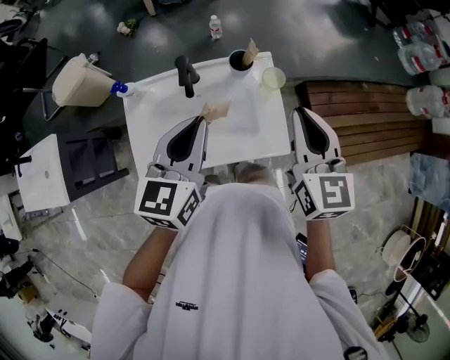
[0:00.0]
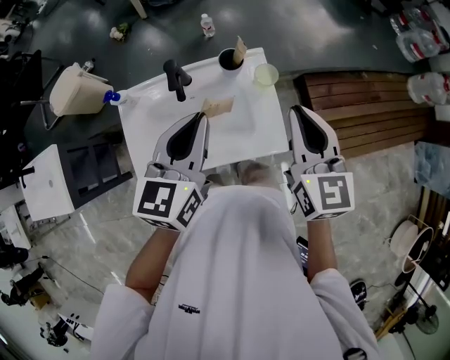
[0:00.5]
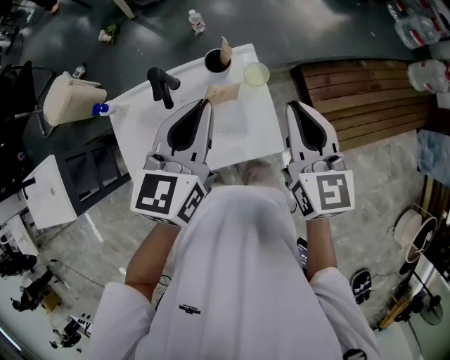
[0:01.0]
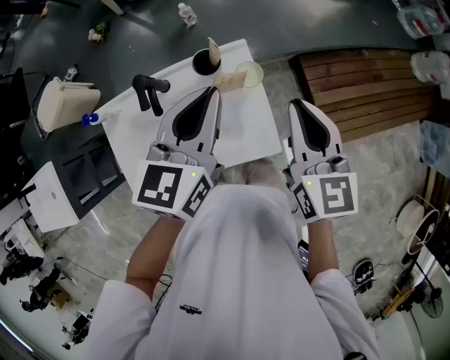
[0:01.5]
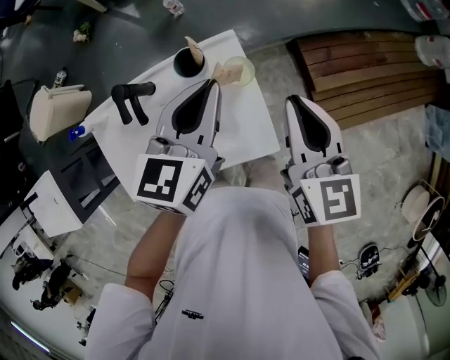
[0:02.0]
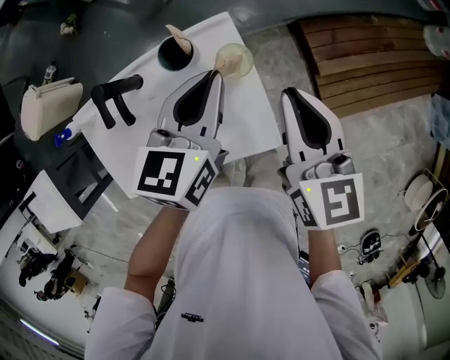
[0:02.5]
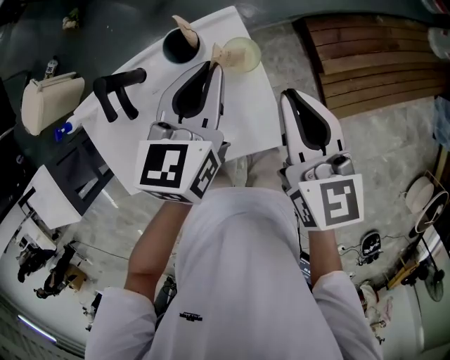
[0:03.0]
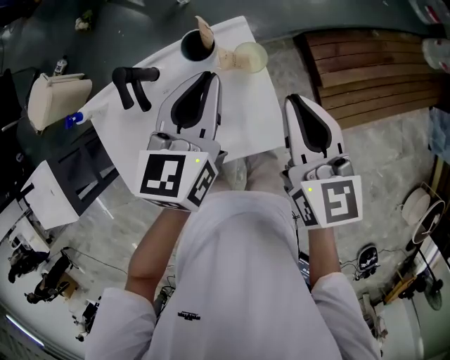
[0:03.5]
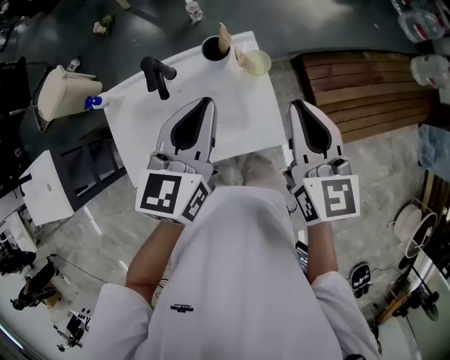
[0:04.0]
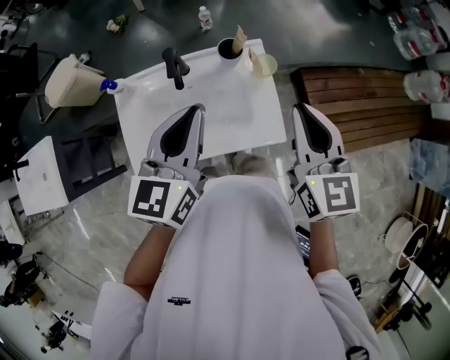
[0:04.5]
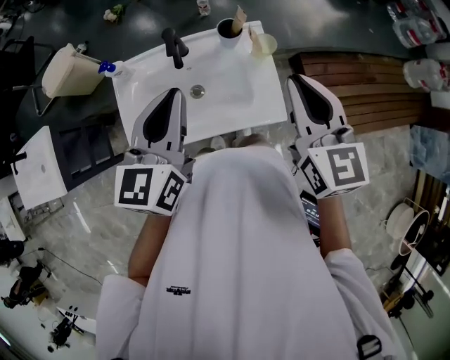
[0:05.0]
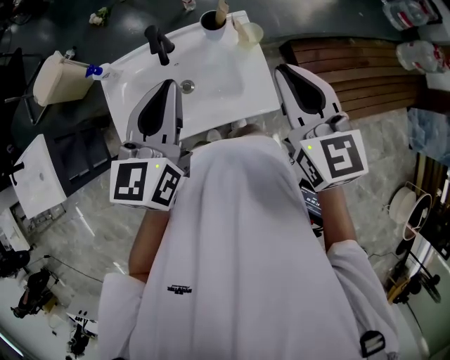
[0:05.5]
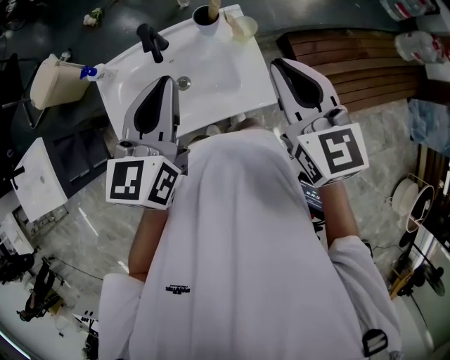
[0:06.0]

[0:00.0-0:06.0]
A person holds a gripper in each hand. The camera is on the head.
0:00.0 to 0:02.0: The left gripper shifts about 25 cm forward, to the right and downward, while the right gripper travels forward, downward and to the right by approximately 15 cm.
0:02.0 to 0:04.0: The right gripper travels backward by some 5 cm, while the left gripper heads backward and to the left, covering approximately 10 cm.
0:04.0 to 0:06.0: The right gripper travels backward and upward by roughly 10 cm. The left gripper moves backward, to the left and upward, roughly 10 cm.

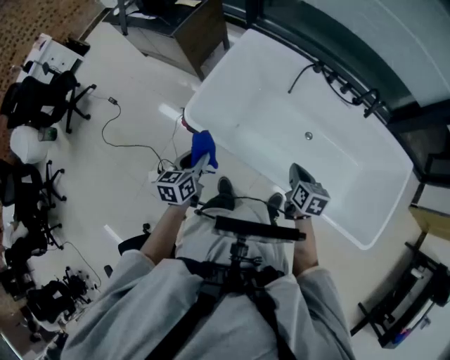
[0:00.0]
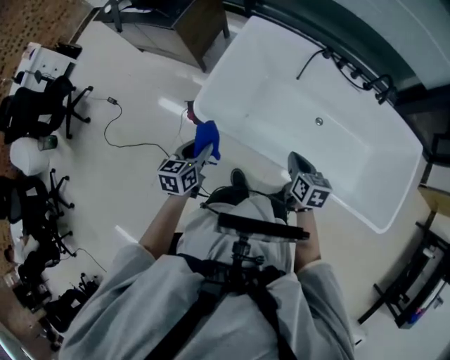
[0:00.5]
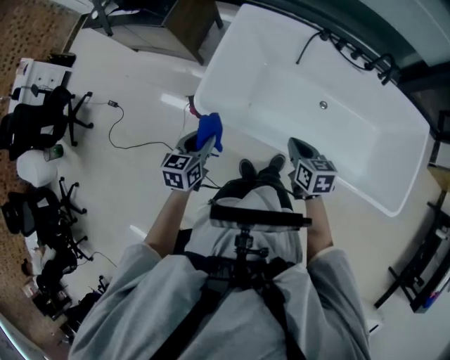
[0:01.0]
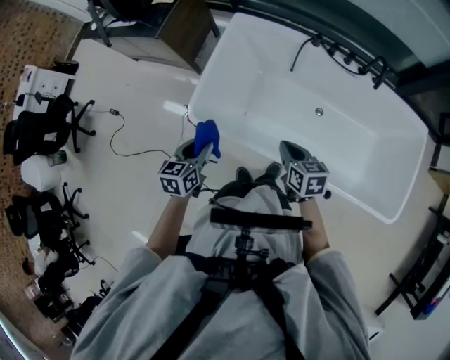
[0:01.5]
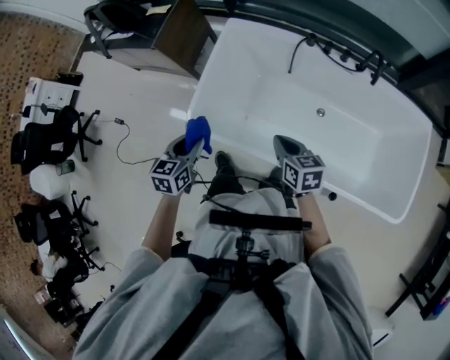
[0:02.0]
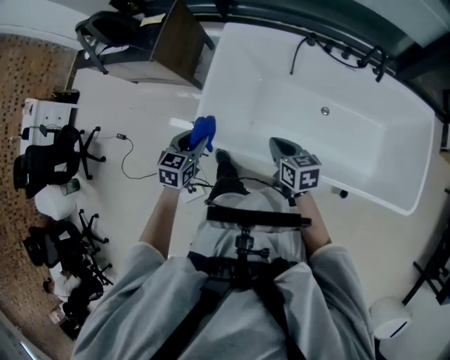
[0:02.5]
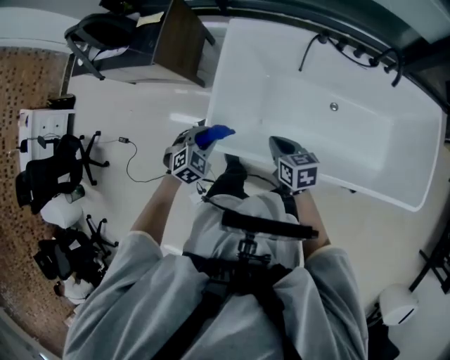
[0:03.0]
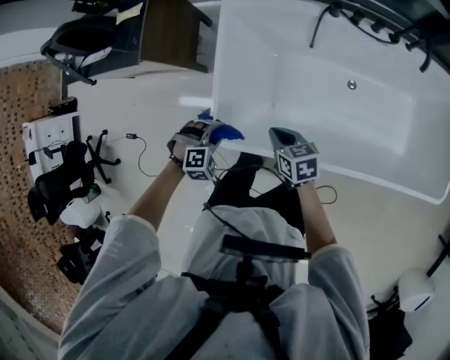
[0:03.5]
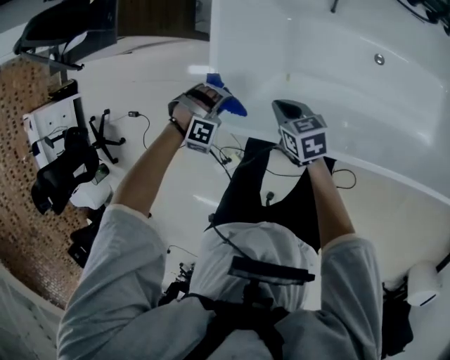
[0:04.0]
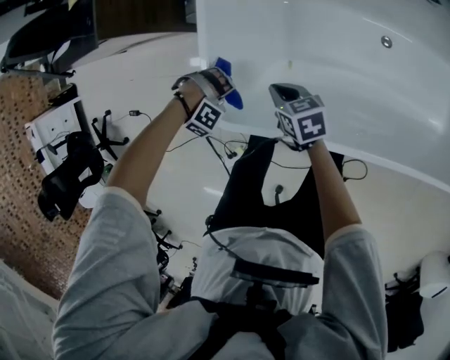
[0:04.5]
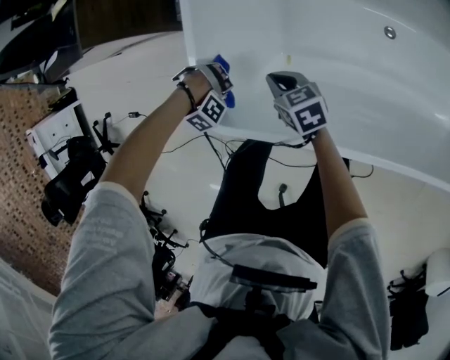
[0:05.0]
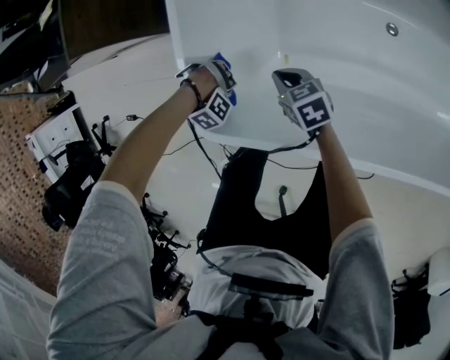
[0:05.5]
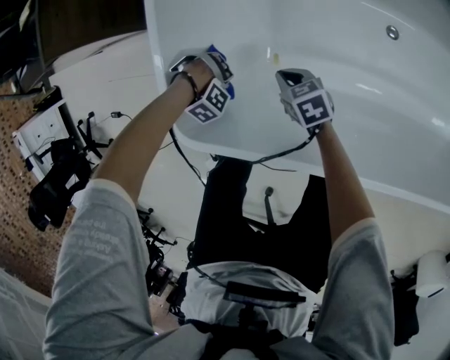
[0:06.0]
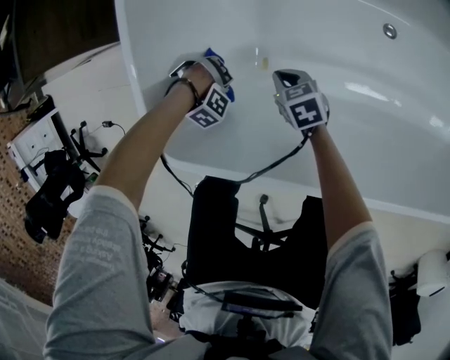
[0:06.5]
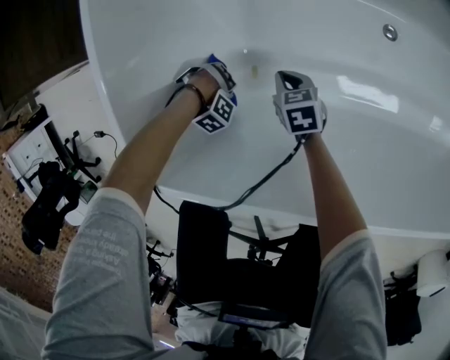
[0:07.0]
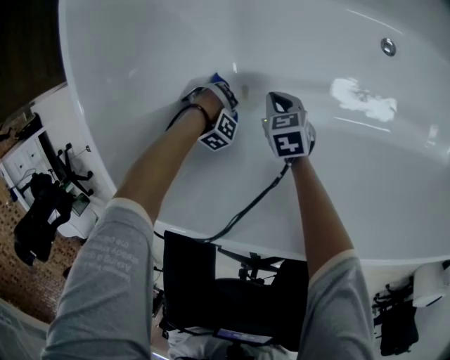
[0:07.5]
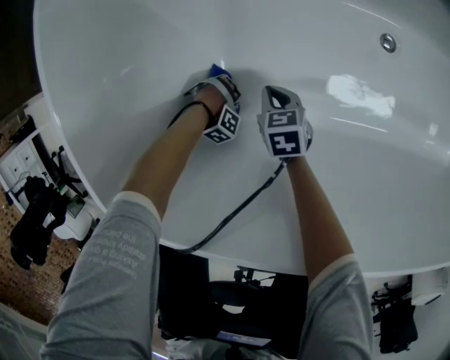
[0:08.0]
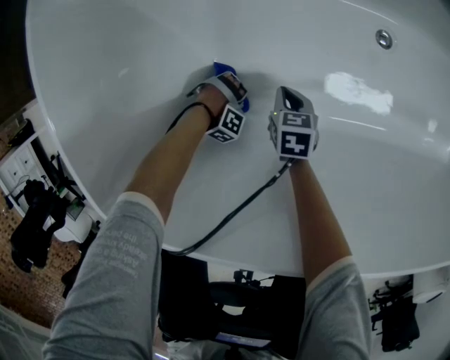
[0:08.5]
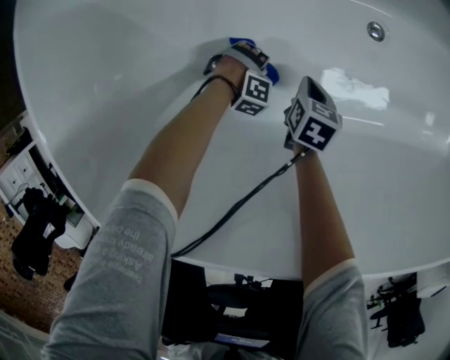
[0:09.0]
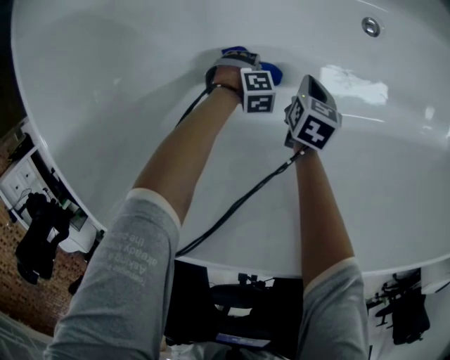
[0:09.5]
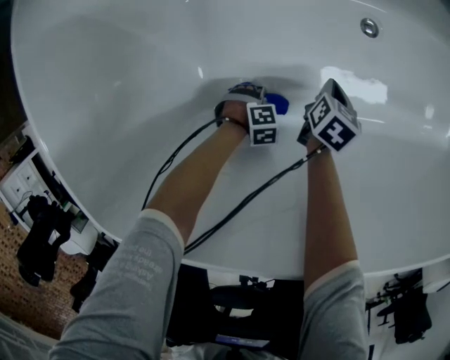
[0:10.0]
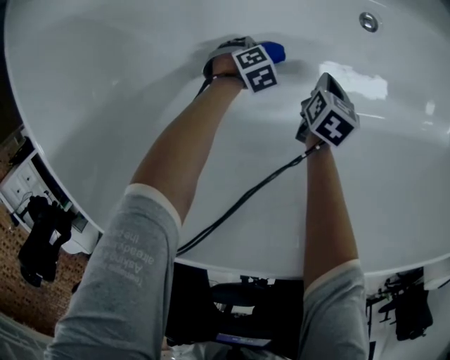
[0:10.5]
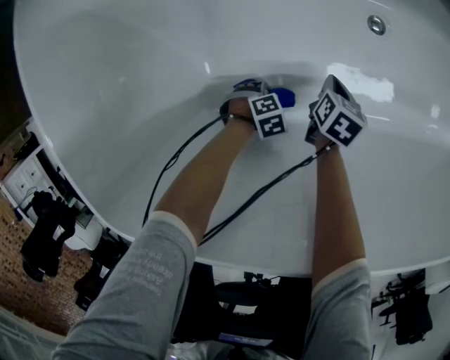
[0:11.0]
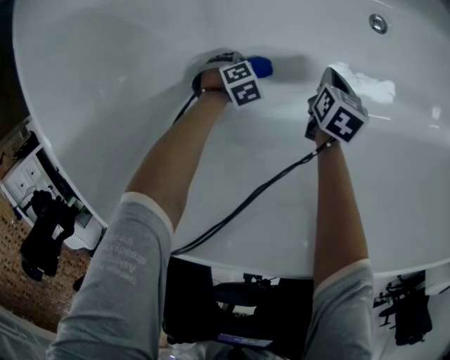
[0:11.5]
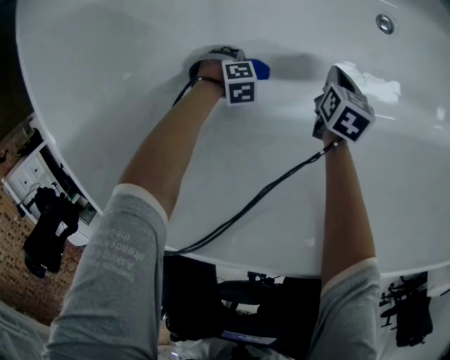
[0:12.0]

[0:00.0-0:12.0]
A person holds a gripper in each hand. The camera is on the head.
0:00.0 to 0:02.0: The right gripper ends up approximately 10 cm from where it was.
0:02.0 to 0:04.0: The right gripper shifts roughly 25 cm downward.
0:04.0 to 0:06.0: The right gripper heads downward, covering some 20 cm.
0:06.0 to 0:08.0: The right gripper heads downward, covering about 15 cm, and swivels about 20 degrees.
0:08.0 to 0:10.0: The right gripper shifts by about 25 cm, and rotates about 50 degrees.

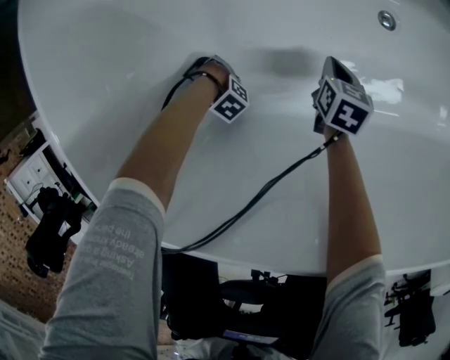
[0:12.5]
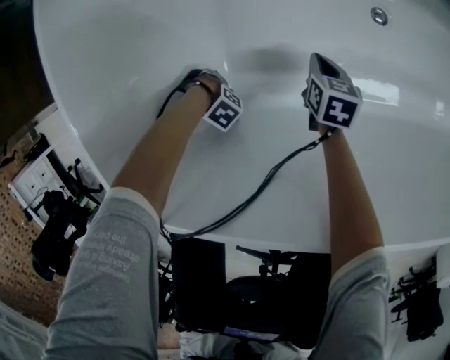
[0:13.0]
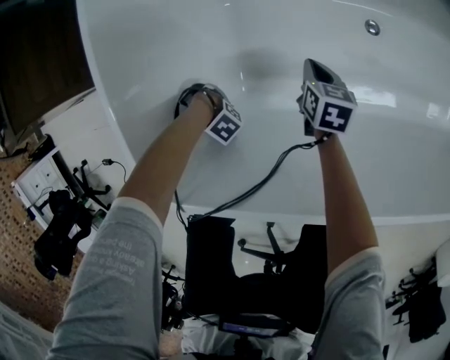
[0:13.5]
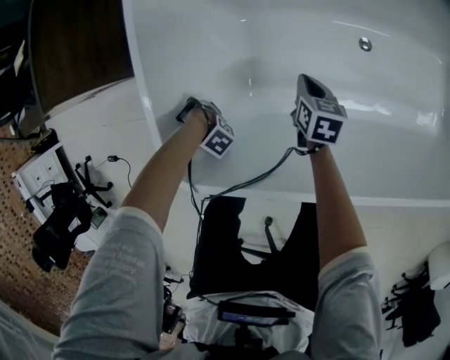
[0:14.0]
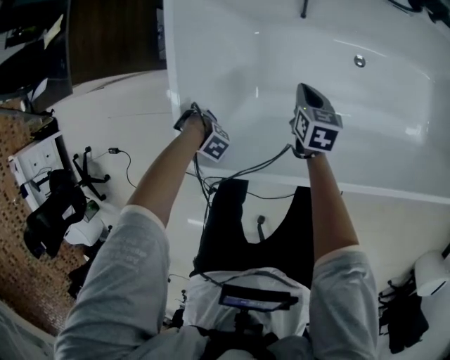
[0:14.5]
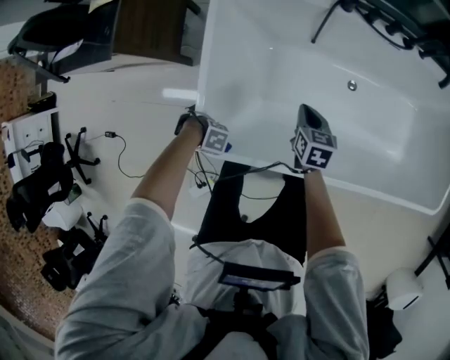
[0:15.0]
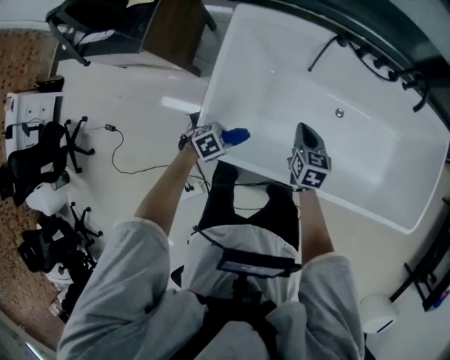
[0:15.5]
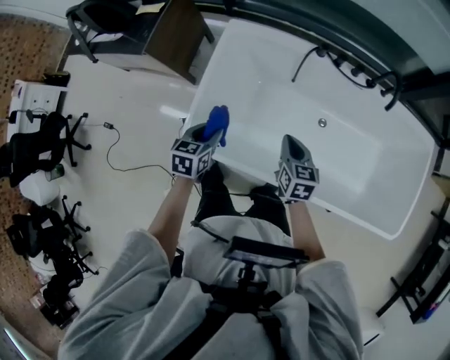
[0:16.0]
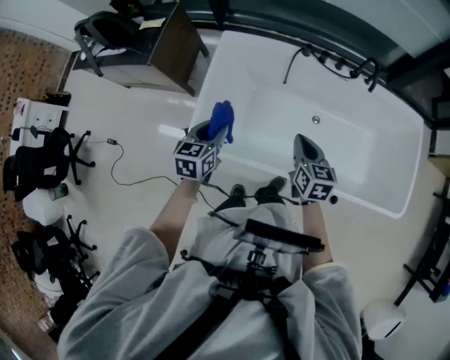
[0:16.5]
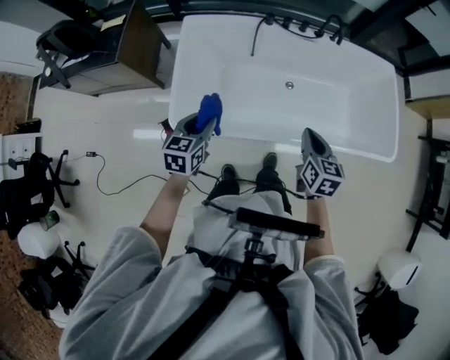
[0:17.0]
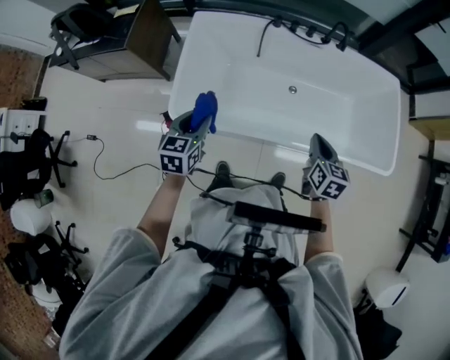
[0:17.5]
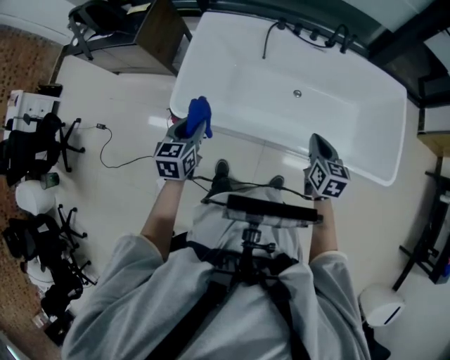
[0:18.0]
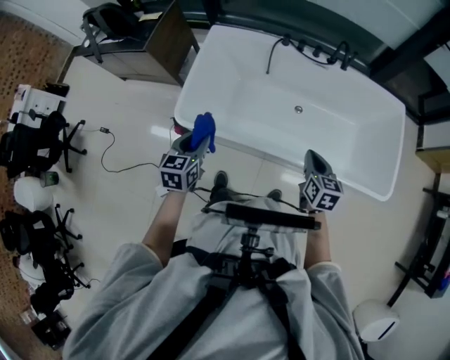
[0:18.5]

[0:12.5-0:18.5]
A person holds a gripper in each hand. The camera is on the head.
0:12.5 to 0:14.5: The right gripper is displaced upward by some 30 cm.
0:14.5 to 0:16.5: The right gripper heads upward, covering some 35 cm, and turns by roughly 20 degrees.
0:16.5 to 0:18.5: The right gripper shifts by some 25 cm.

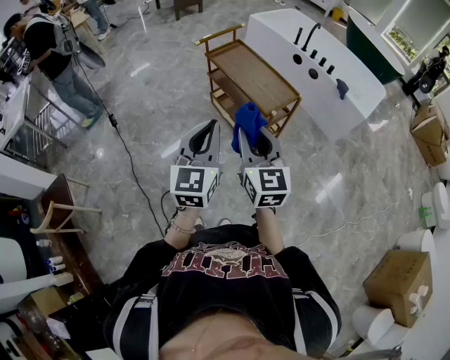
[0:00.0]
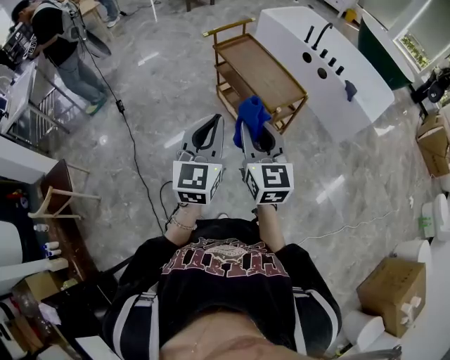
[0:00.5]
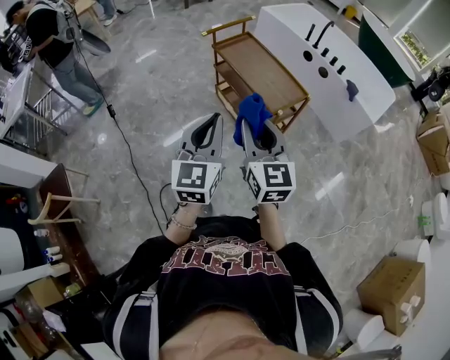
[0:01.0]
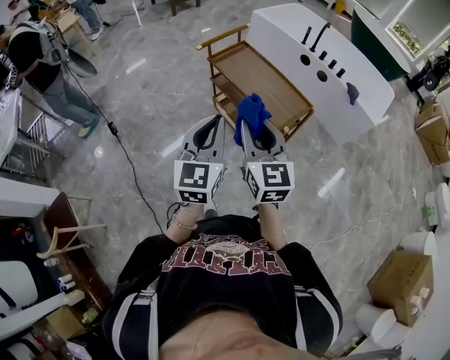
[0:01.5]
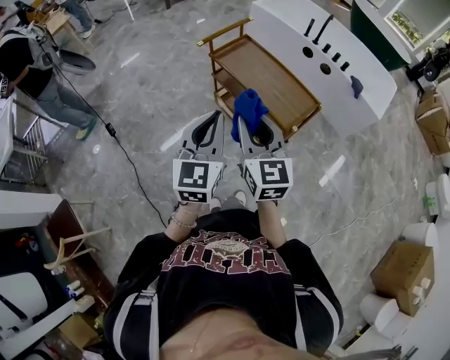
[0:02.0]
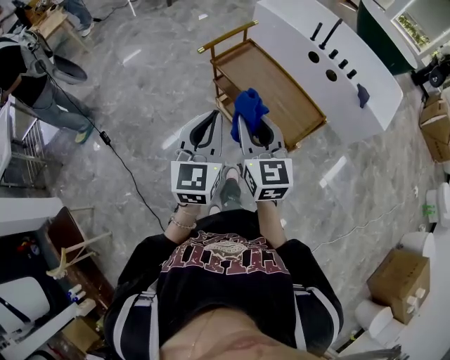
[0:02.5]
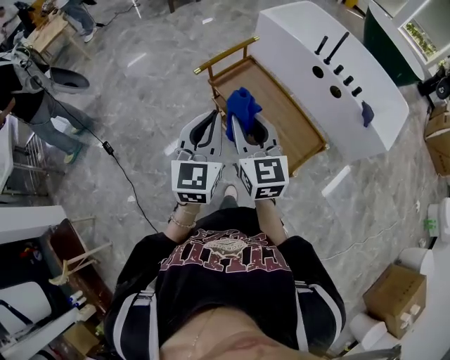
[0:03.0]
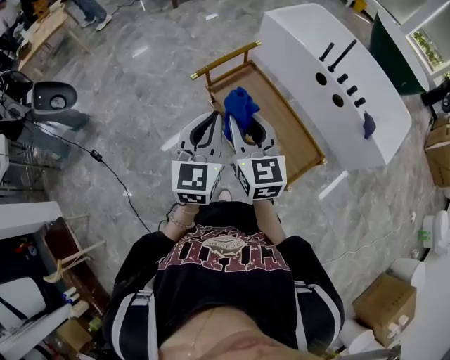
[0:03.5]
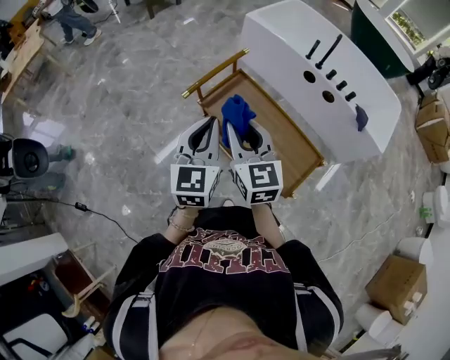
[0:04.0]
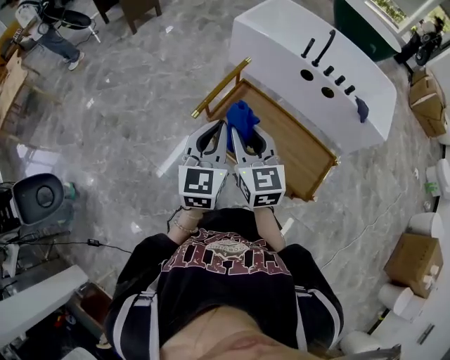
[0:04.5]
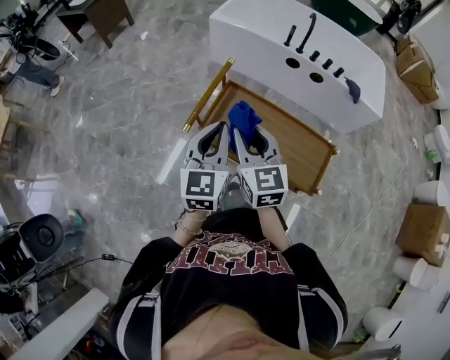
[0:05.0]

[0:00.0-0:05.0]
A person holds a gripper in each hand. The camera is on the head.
0:00.0 to 0:02.5: Both grippers travel together forward, some 30 cm.
0:02.5 to 0:05.0: The right gripper shifts by about 40 cm. The left gripper shifts by roughly 40 cm, and swivels approximately 20 degrees.
